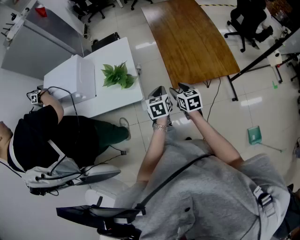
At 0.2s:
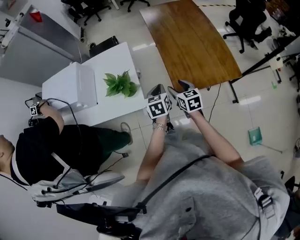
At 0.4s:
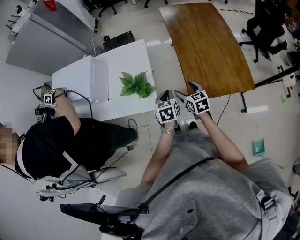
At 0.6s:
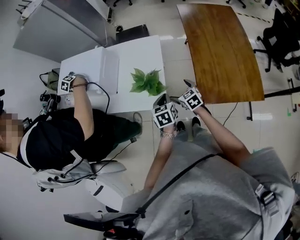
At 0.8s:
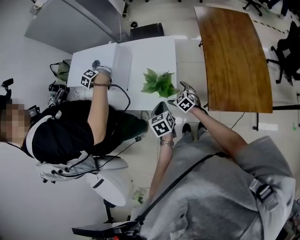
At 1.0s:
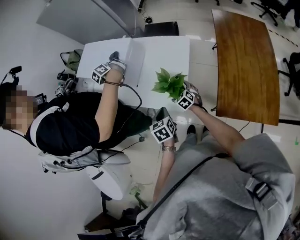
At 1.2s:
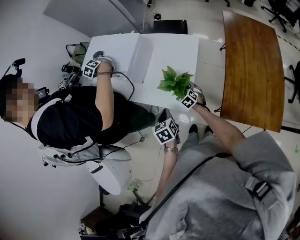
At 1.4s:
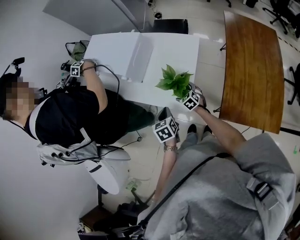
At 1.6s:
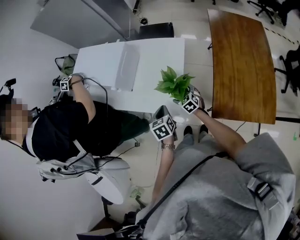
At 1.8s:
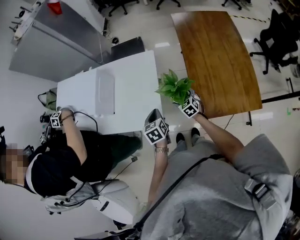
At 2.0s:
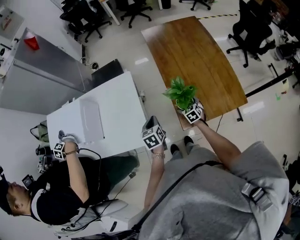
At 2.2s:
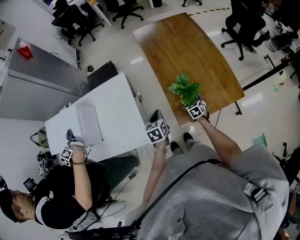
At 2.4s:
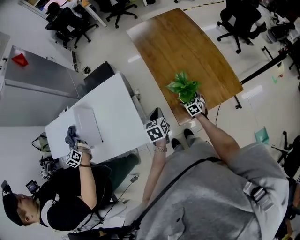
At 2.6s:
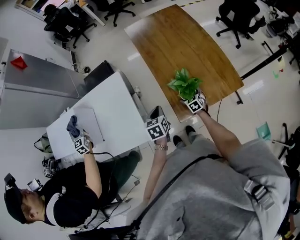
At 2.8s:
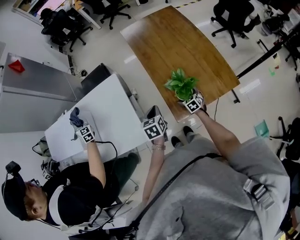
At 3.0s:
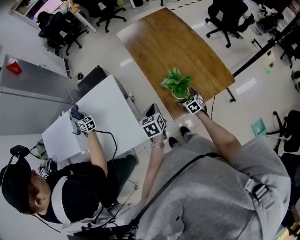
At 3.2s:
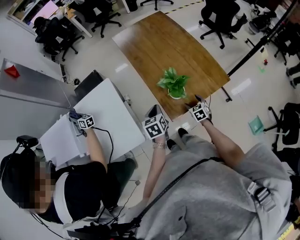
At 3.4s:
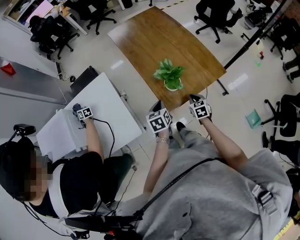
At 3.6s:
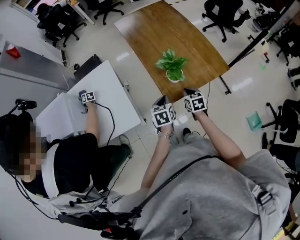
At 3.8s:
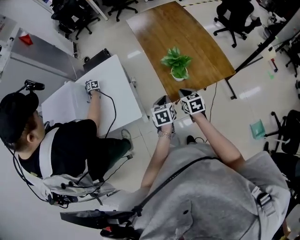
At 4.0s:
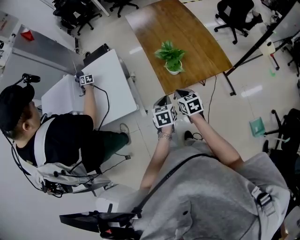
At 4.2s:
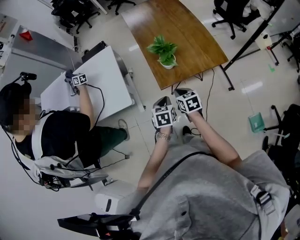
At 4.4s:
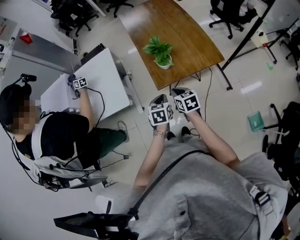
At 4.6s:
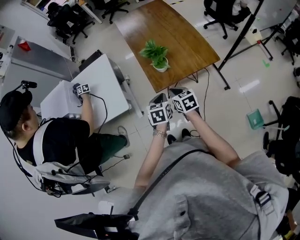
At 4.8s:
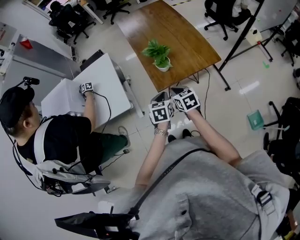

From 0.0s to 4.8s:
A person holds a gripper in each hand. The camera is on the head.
From 0.0s to 1.6s: The right gripper ends up approximately 35 cm from where it was, swivels about 50 degrees, and opens its fingers, while the left gripper shifts by about 25 cm, and swivels roughly 40 degrees.
From 1.6s to 3.2s: The right gripper travels downward and back again, some 10 cm each way, and swivels some 50 degrees. Meanwhile the left gripper changes place by some 30 cm, and rotates approximately 40 degrees.
From 3.2s to 4.8s: The right gripper travels upward and backward by about 25 cm, rotates roughly 20 degrees, and closes its fingers, while the left gripper shifts some 25 cm backward and to the right.

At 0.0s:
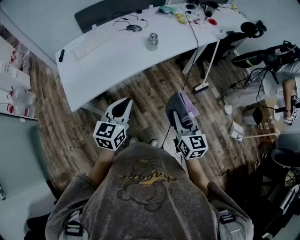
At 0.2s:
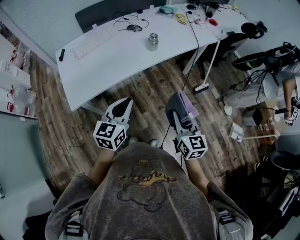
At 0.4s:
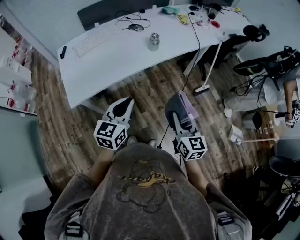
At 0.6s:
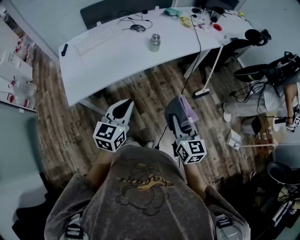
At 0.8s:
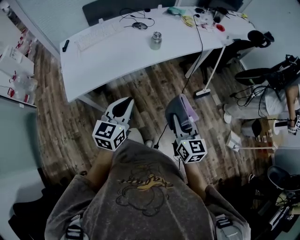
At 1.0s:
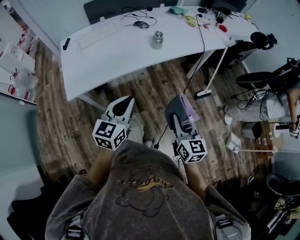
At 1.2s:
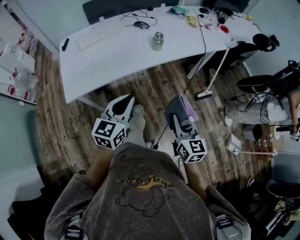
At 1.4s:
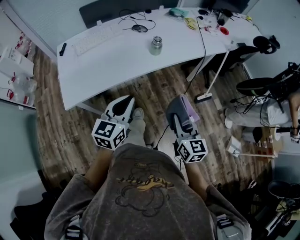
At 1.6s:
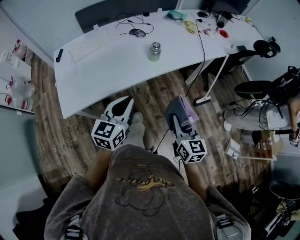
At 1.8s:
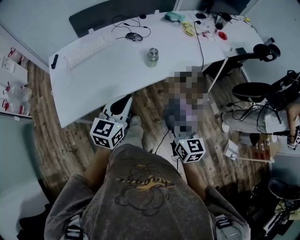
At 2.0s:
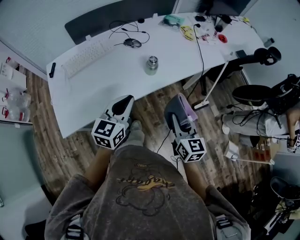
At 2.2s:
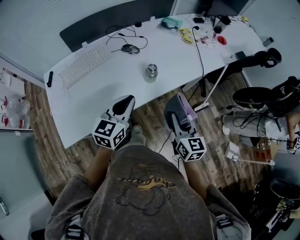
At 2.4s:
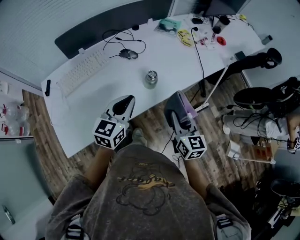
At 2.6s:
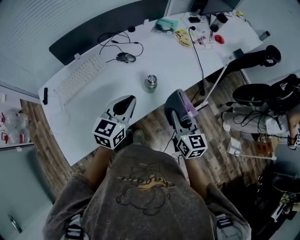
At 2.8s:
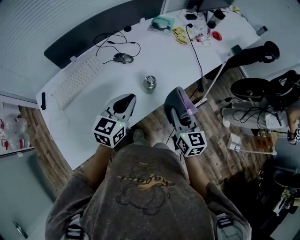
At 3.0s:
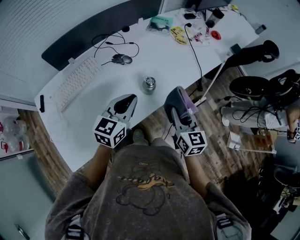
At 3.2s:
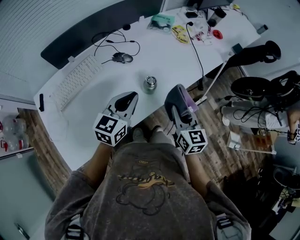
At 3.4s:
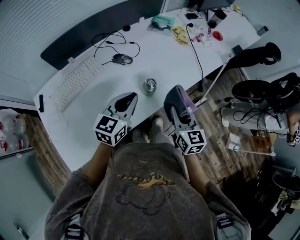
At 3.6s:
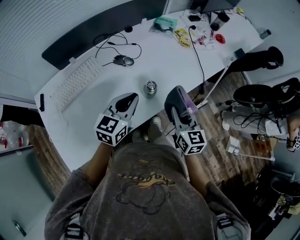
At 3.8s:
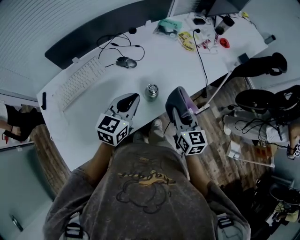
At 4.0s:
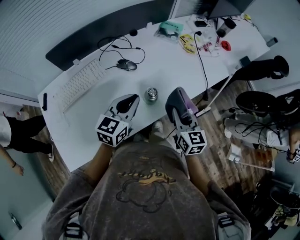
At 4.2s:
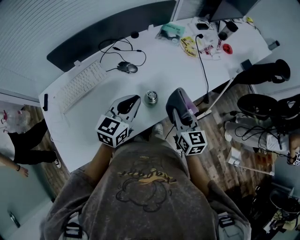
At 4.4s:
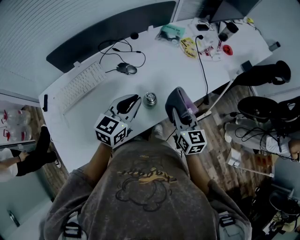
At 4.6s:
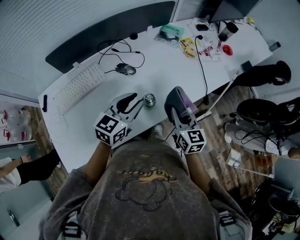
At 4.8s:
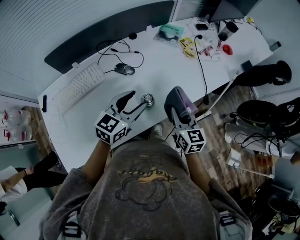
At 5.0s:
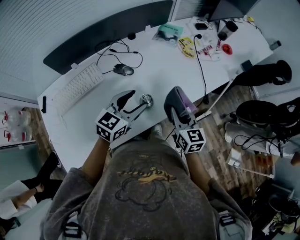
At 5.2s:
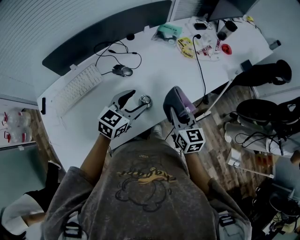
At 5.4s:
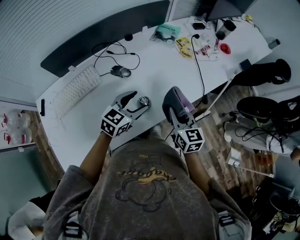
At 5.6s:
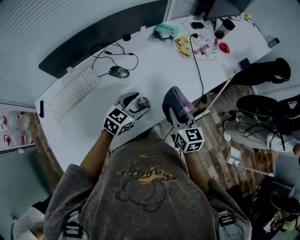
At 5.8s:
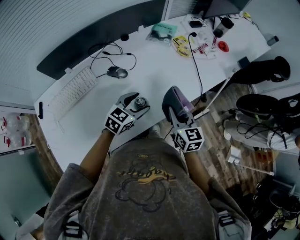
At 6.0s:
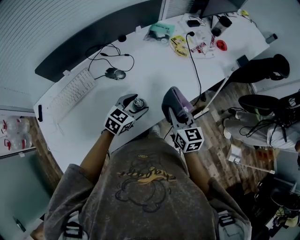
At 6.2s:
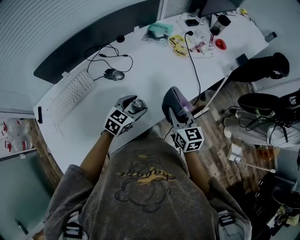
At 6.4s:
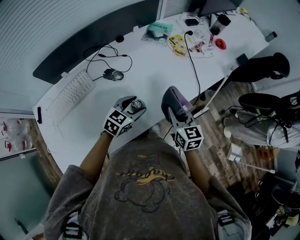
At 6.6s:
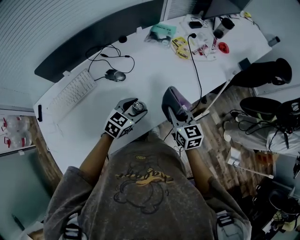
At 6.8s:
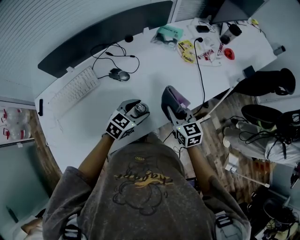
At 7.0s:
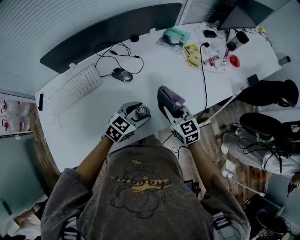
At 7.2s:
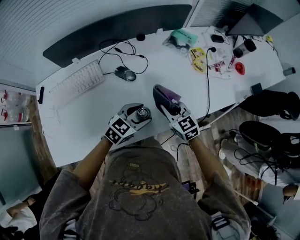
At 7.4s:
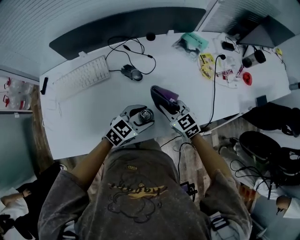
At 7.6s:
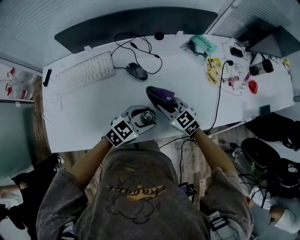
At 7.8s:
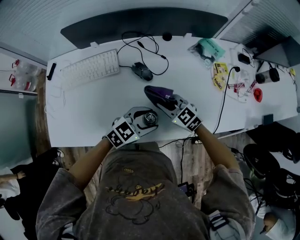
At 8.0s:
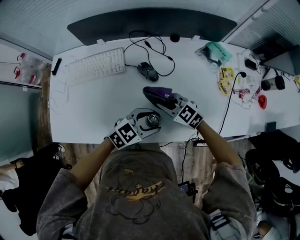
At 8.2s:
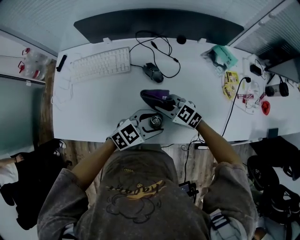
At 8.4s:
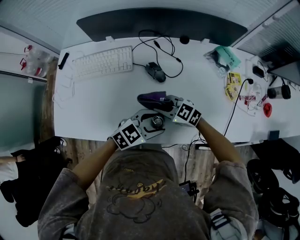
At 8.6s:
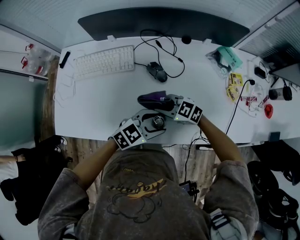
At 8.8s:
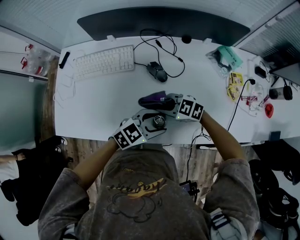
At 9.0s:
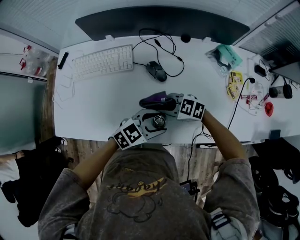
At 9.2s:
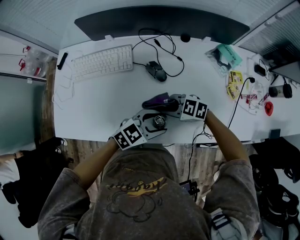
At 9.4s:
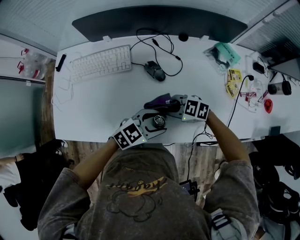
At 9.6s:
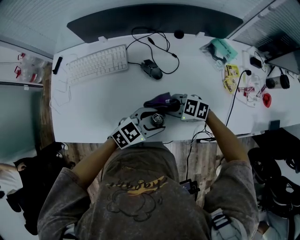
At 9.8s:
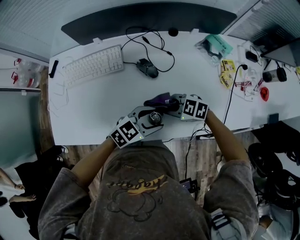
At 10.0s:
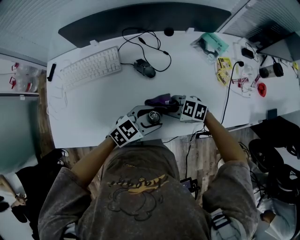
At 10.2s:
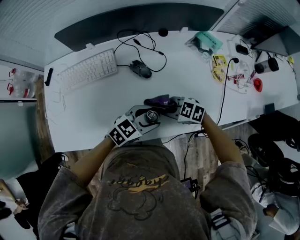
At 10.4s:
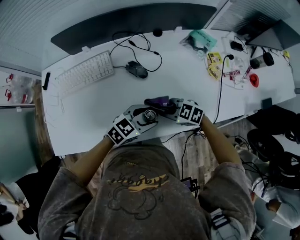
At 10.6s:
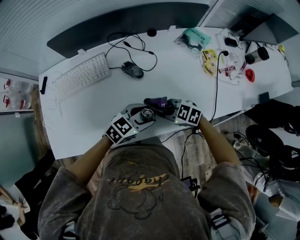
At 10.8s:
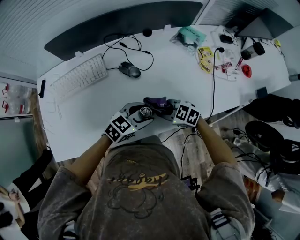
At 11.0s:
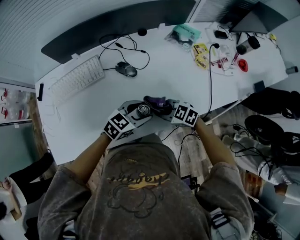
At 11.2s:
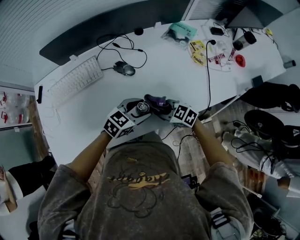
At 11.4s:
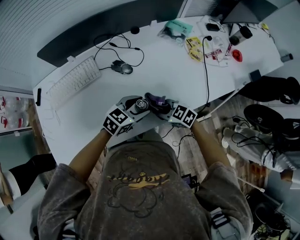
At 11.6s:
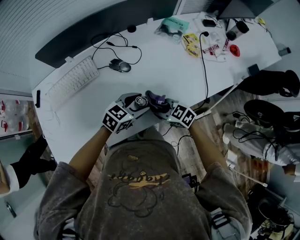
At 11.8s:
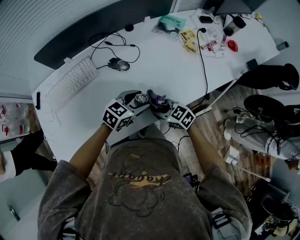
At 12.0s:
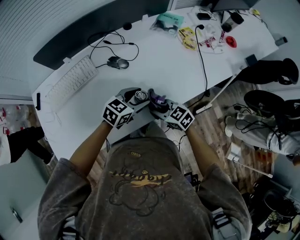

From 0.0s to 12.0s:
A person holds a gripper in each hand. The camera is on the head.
From 0.0s to 1.6s: Both grippers move forward, roughly 10 cm.
From 1.6s to 3.0s: Both grippers move forward, about 25 cm.
From 3.0s to 4.4s: The two grippers go some 10 cm forward.
From 4.4s to 6.0s: The right gripper changes place by roughly 5 cm, while the left gripper goes roughly 15 cm downward and to the right, turns by roughly 20 degrees, and opens its fingers.
From 6.0s to 7.6s: The right gripper moves some 15 cm, and changes its angle by roughly 60 degrees.
From 7.6s to 9.0s: The right gripper ends up approximately 5 cm from where it was, and turns by roughly 40 degrees.
From 9.0s to 10.4s: The right gripper moves approximately 5 cm.
From 10.4s to 12.0s: The right gripper changes place by roughly 5 cm, and changes its angle by roughly 40 degrees.

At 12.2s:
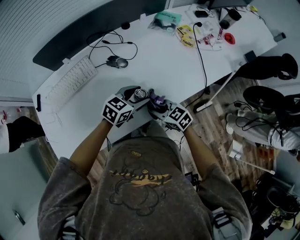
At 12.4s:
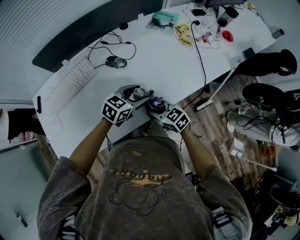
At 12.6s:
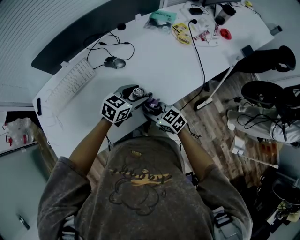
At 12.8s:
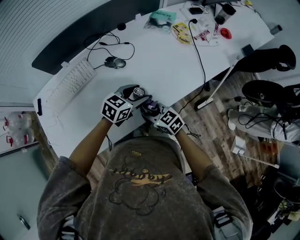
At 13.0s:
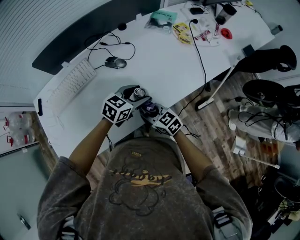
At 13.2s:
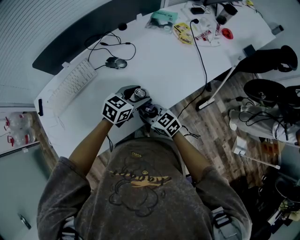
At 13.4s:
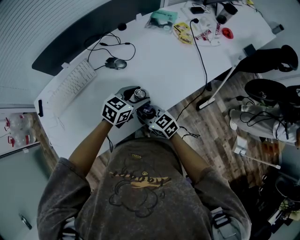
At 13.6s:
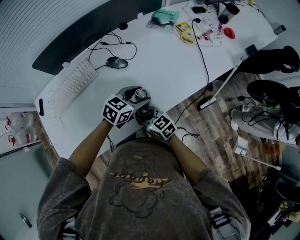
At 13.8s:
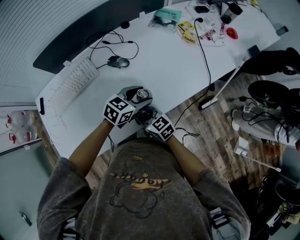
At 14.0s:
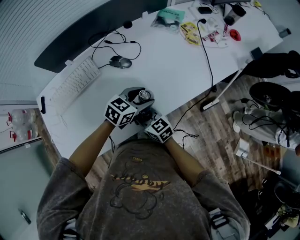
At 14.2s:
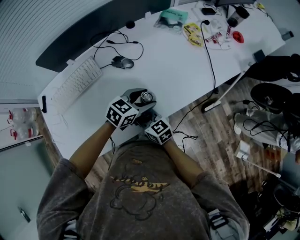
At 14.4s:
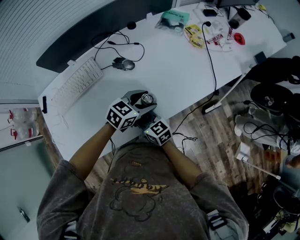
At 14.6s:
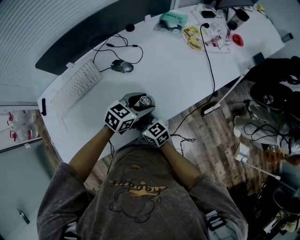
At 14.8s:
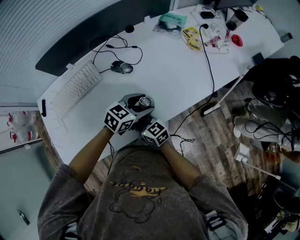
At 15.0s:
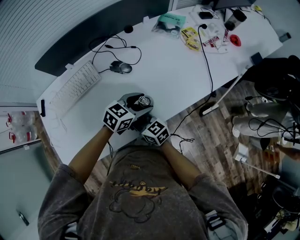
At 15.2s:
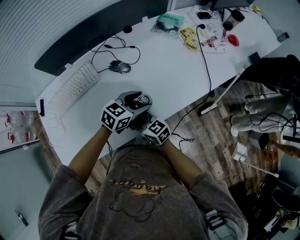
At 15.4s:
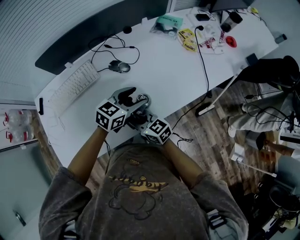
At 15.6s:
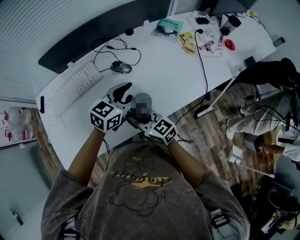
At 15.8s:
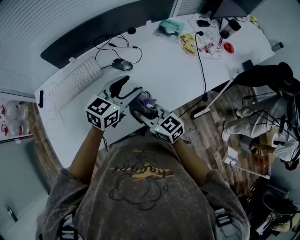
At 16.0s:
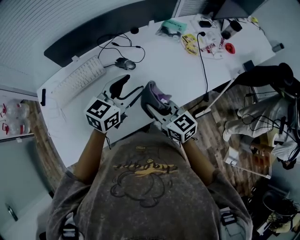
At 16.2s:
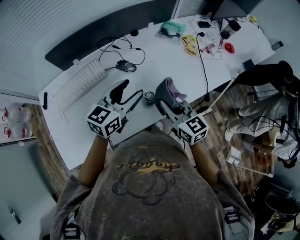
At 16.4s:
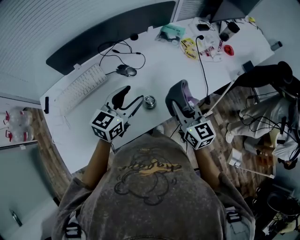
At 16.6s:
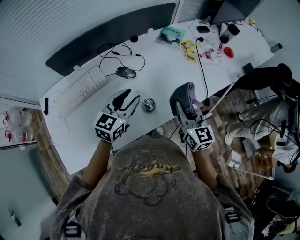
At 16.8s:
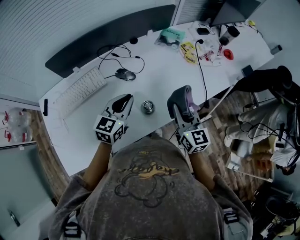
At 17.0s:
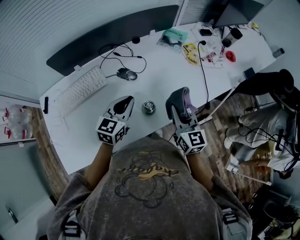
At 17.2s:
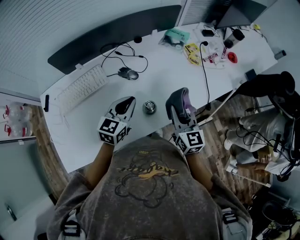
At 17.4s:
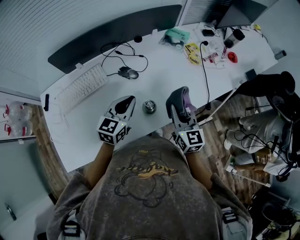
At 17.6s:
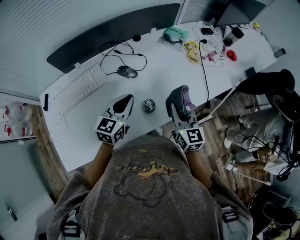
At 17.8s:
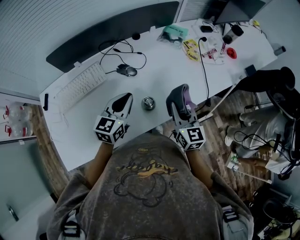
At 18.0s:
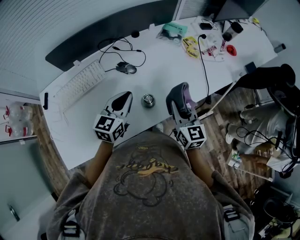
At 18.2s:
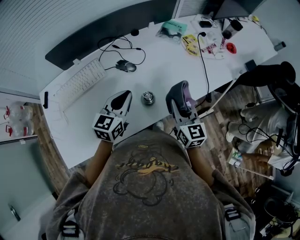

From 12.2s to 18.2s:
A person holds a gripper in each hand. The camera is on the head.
From 12.2s to 13.8s: The right gripper goes some 10 cm to the left.
From 13.8s to 15.2s: The grippers move only a little.
From 15.2s to 16.6s: The right gripper is displaced to the right and upward by approximately 25 cm, and turns by about 40 degrees. The left gripper heads upward and to the left, covering approximately 15 cm, and changes its angle by roughly 30 degrees.
From 16.6s to 18.2s: The left gripper closes.

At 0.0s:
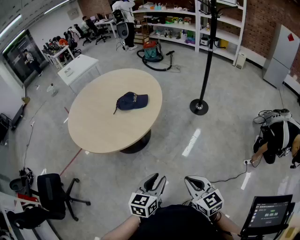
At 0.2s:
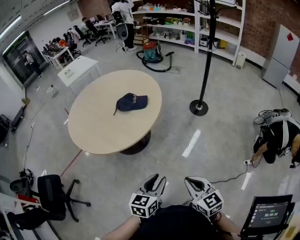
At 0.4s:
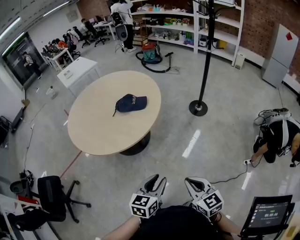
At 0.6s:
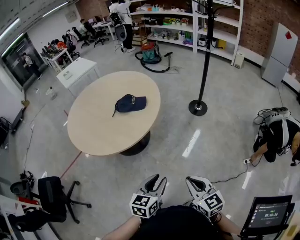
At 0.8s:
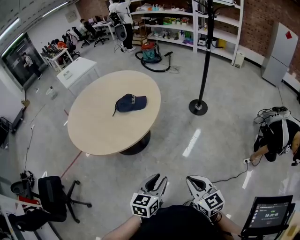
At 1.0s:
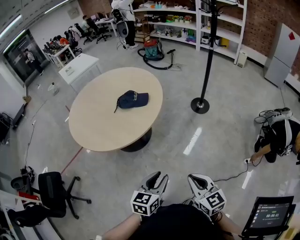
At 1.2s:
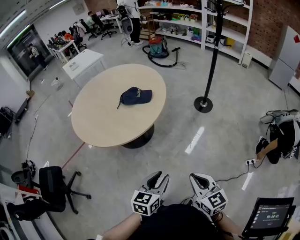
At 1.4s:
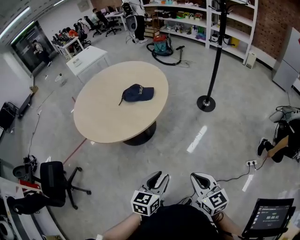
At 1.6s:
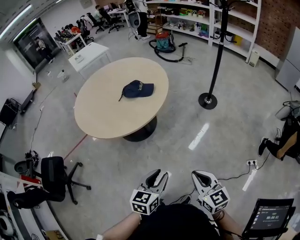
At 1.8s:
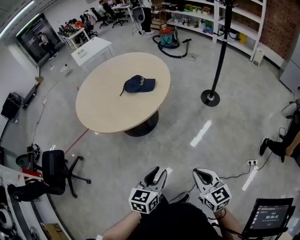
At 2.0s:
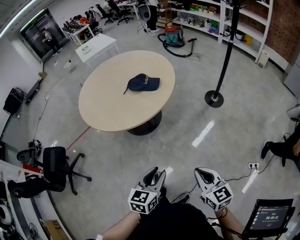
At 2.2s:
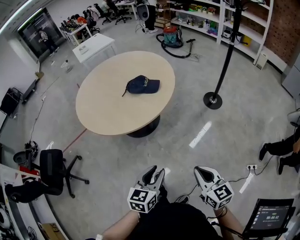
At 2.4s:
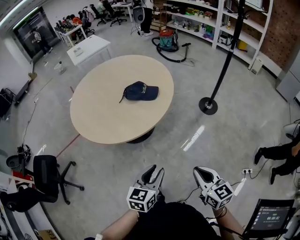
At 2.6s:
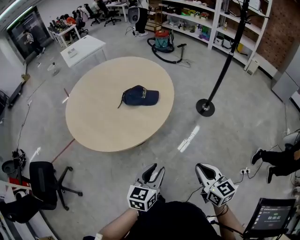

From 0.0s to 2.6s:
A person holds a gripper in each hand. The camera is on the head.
From 0.0s to 1.2s: The grippers make only small movements.
From 1.2s to 2.6s: Both grippers move forward, about 15 cm.
